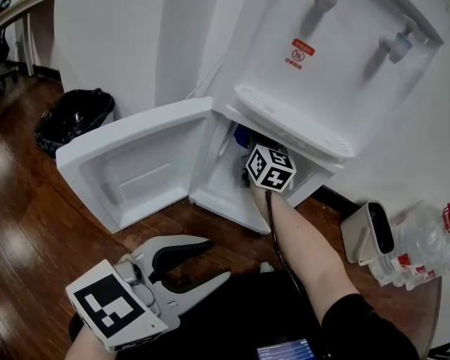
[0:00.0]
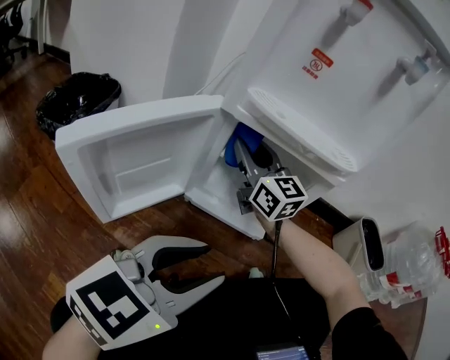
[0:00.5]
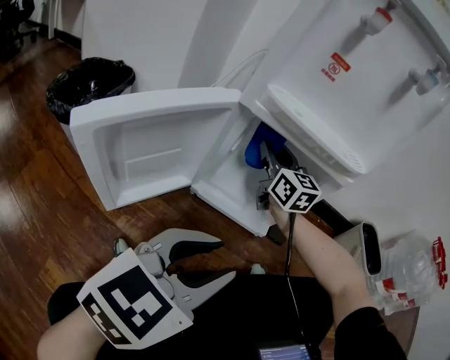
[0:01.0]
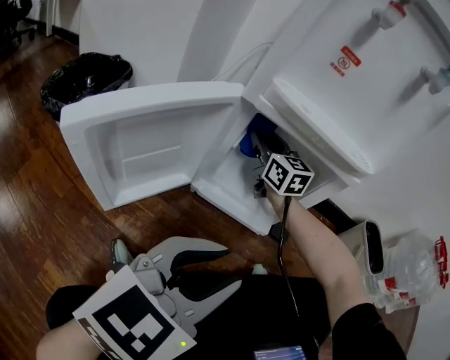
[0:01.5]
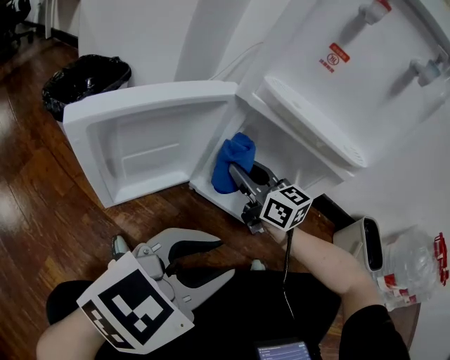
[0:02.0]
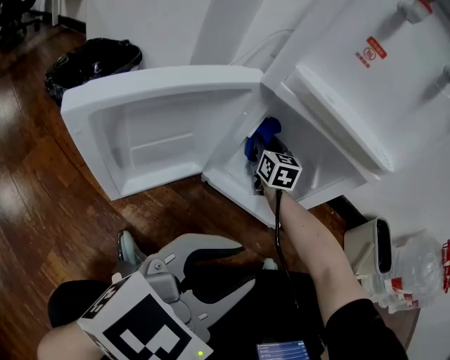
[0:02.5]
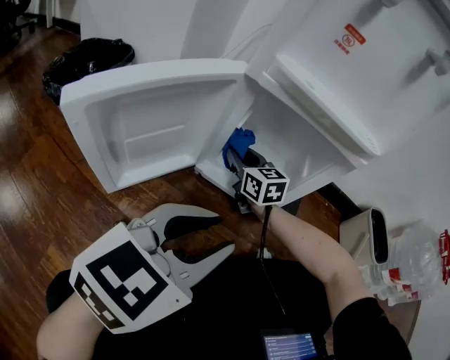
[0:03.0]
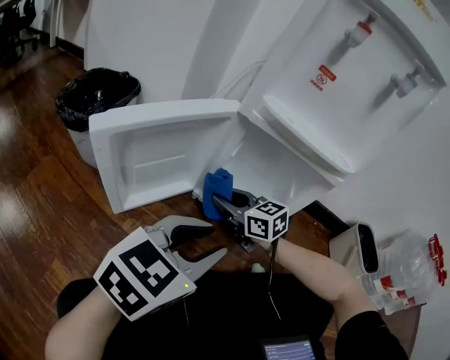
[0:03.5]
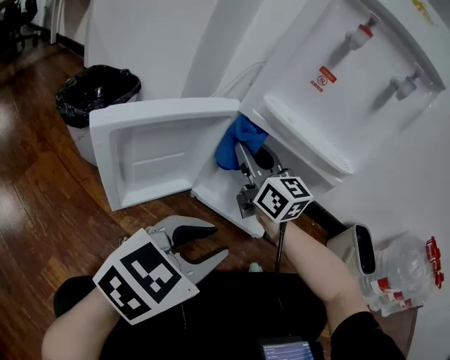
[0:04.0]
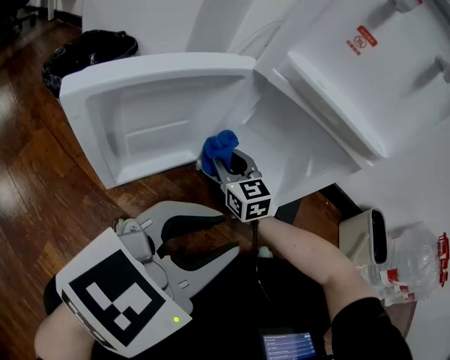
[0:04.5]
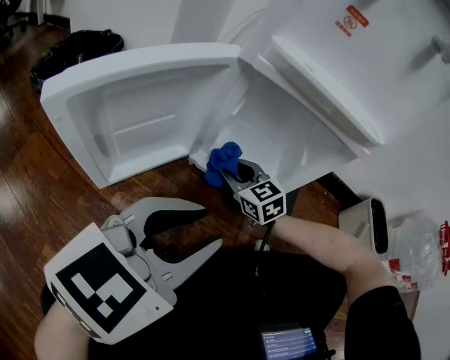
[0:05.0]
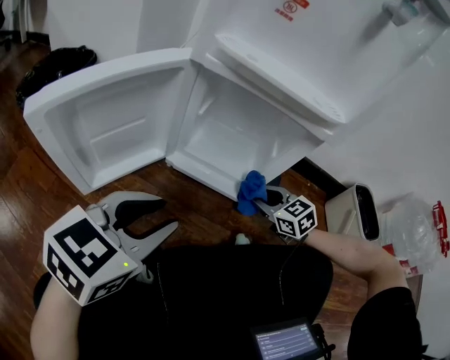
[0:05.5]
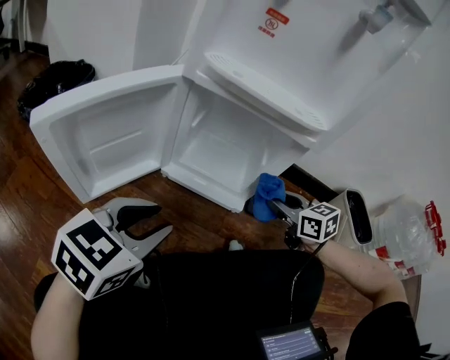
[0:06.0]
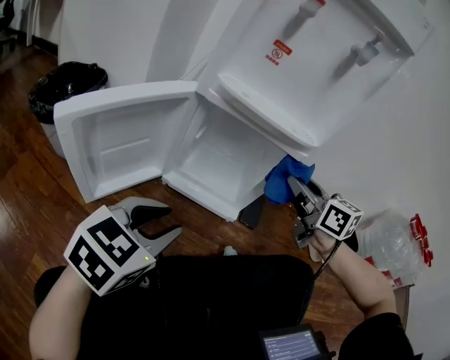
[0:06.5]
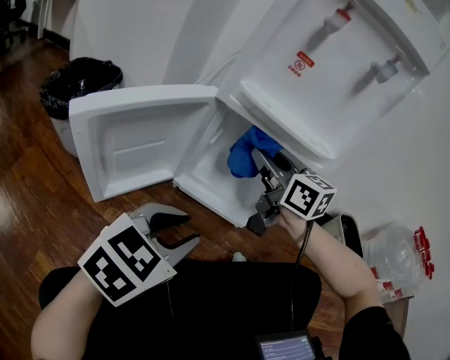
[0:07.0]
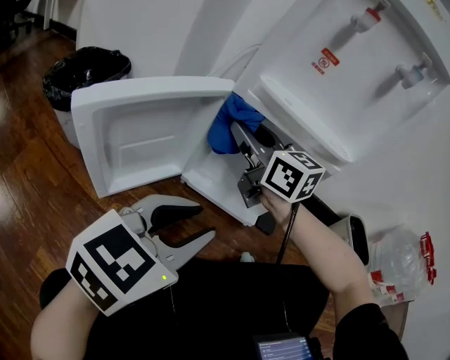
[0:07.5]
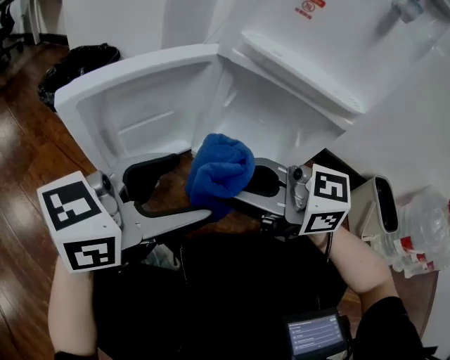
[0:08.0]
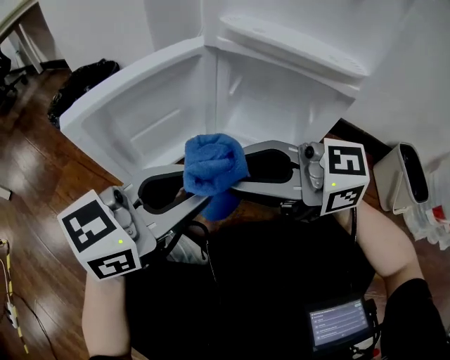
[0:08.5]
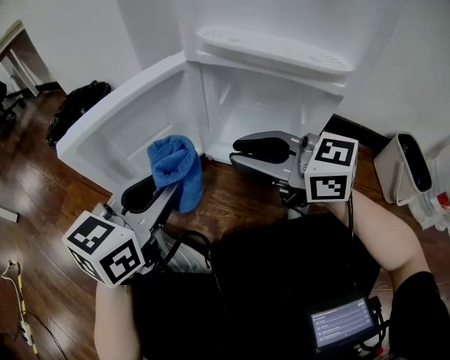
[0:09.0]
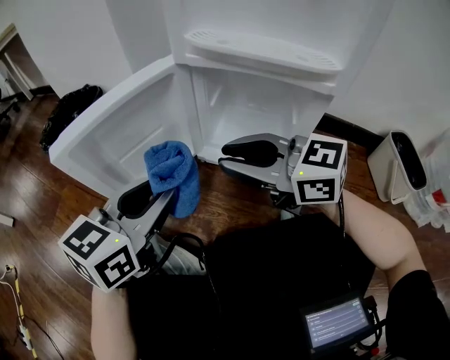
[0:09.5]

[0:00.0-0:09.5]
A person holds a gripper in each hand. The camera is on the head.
0:00.0 to 0:02.0: The right gripper moves forward and backward over about 15 cm, changing direction 2 times, and swivels about 40 degrees.
0:02.0 to 0:04.0: The right gripper moves forward and backward over about 20 cm, changing direction 2 times.
0:04.0 to 0:05.5: The right gripper heads downward and to the right, covering approximately 35 cm, and points its fingers about 40 degrees further downward.
0:05.5 to 0:07.5: The left gripper is displaced upward by roughly 5 cm, while the right gripper is displaced upward and to the left by about 35 cm, and angles its fingers upward, by about 30 degrees.
0:07.5 to 0:09.5: The left gripper shifts by some 5 cm, and opens, then closes once more. Meanwhile the right gripper ends up approximately 15 cm from where it was, and swivels roughly 20 degrees.

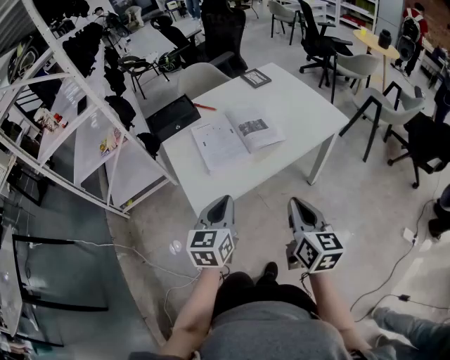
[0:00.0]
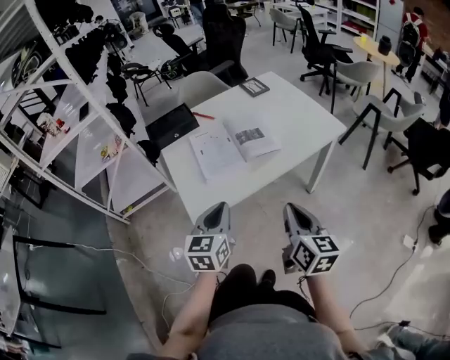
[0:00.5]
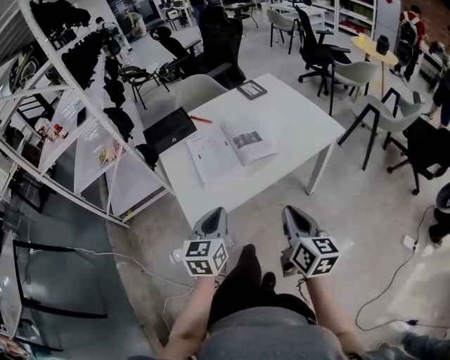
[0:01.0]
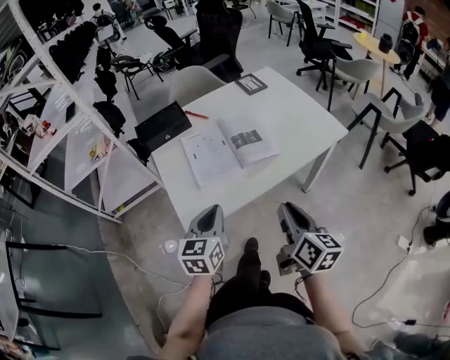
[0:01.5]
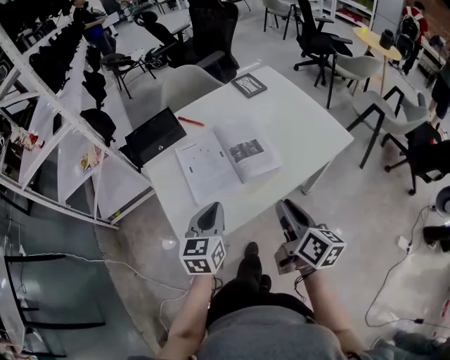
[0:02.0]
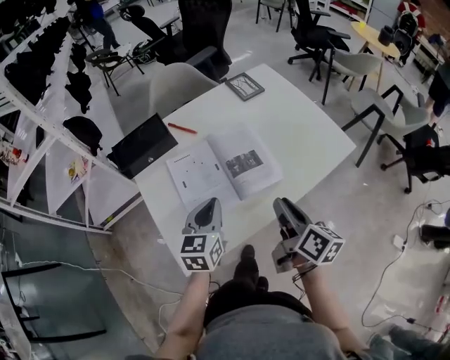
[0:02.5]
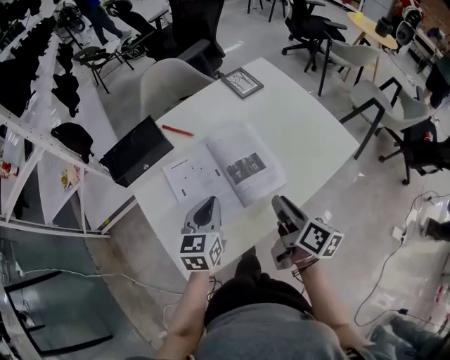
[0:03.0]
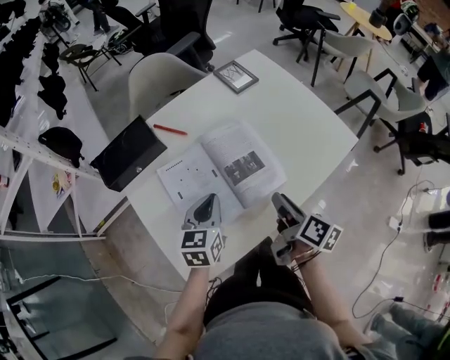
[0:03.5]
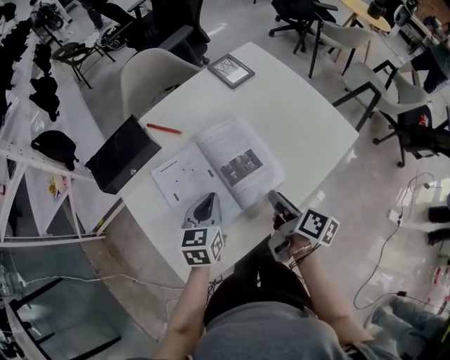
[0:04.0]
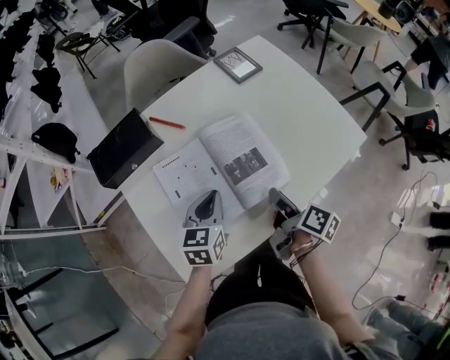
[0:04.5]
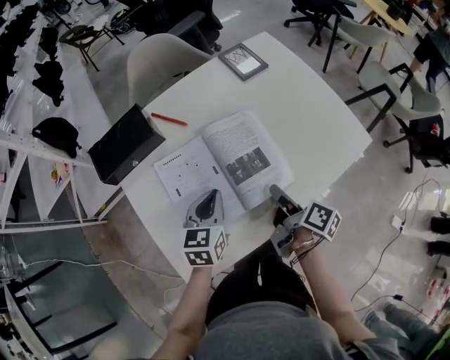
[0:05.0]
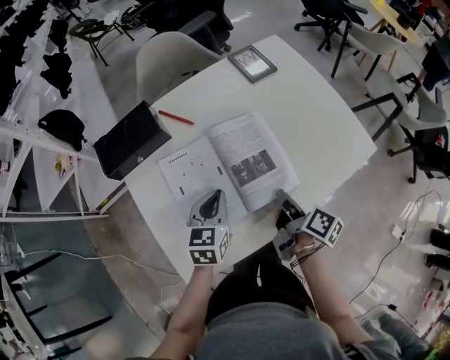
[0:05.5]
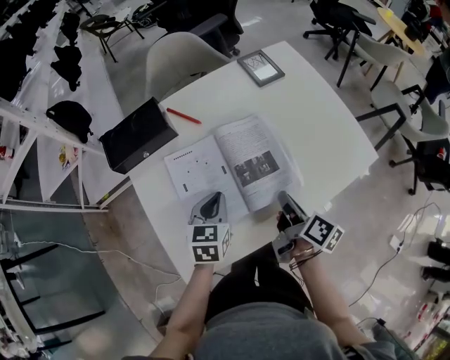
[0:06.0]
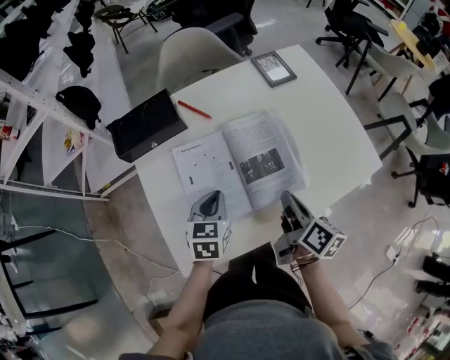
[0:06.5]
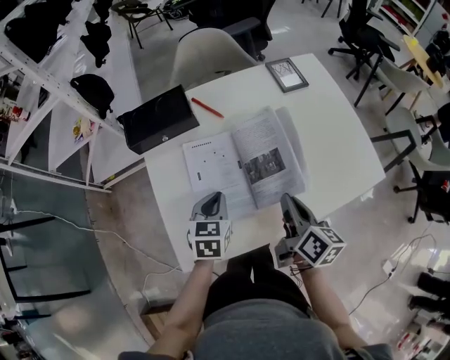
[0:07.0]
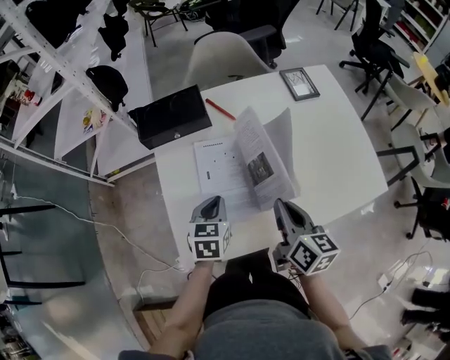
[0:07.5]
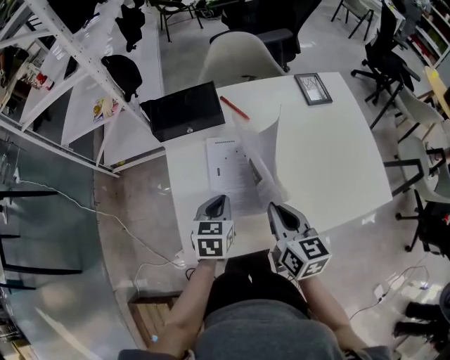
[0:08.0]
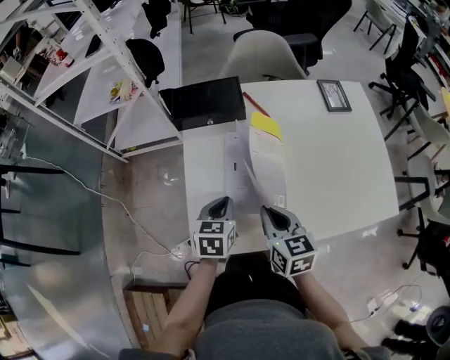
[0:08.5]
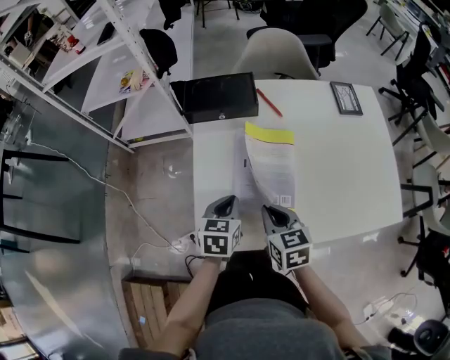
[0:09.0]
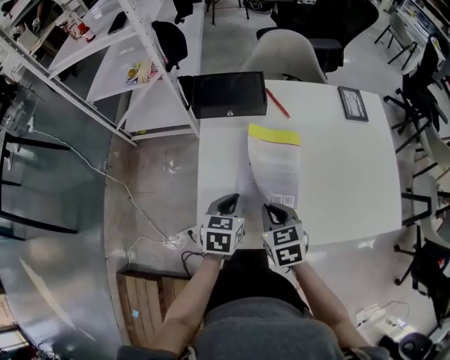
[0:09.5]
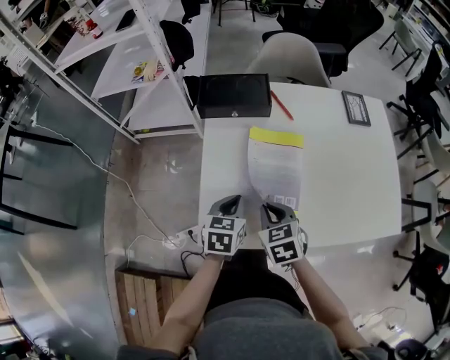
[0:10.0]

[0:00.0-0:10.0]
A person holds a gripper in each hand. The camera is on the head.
0:00.0 to 0:02.0: The grippers both shift forward by roughly 15 cm. The right gripper swivels some 20 degrees, and opens.
0:02.0 to 0:04.0: Both grippers travel together forward and downward, roughly 15 cm. The right gripper swivels approximately 30 degrees.
0:04.0 to 0:06.0: The right gripper closes up.
0:06.0 to 0:08.0: The right gripper is displaced to the left and upward by about 15 cm, and rolls counterclockwise, seen from behind, by about 50 degrees; the left gripper is displaced to the left by some 5 cm.
0:08.0 to 0:10.0: The right gripper moves to the left and downward, approximately 10 cm, and rotates approximately 40 degrees. Meanwhile the left gripper moves about 5 cm.

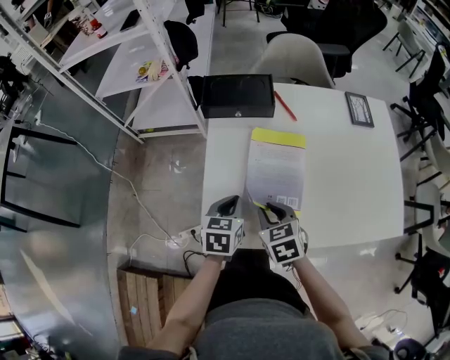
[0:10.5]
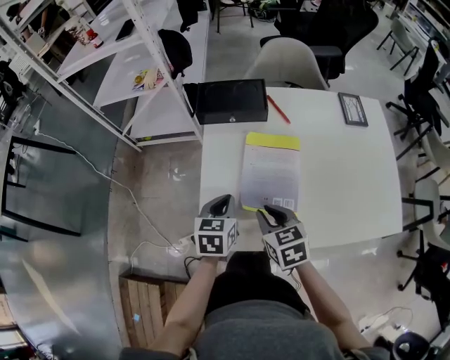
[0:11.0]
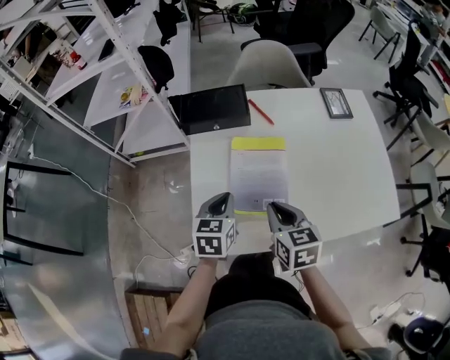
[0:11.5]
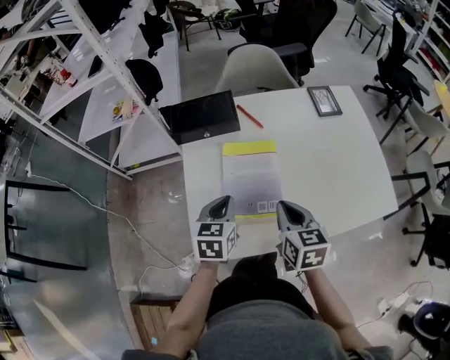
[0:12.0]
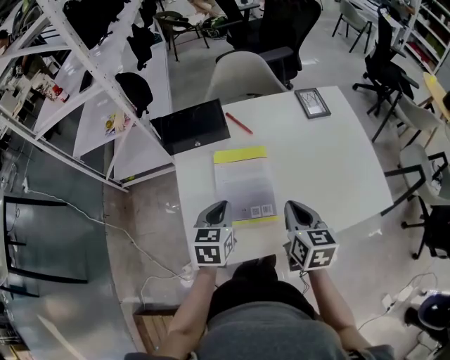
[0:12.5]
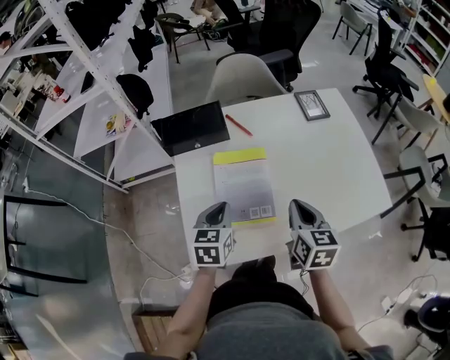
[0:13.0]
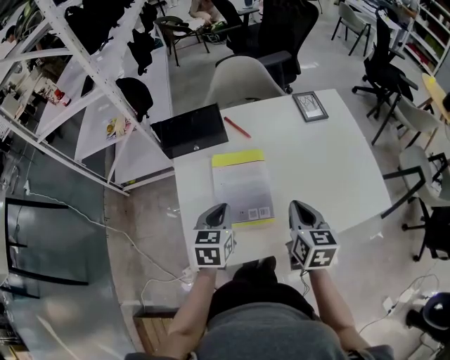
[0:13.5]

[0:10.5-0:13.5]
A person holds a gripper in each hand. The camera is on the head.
0:10.5 to 0:12.0: The left gripper moves upward, some 5 cm; the right gripper heads to the right and upward, covering about 15 cm, and changes its angle by roughly 30 degrees.
0:12.0 to 0:13.5: The right gripper shifts about 5 cm to the right.

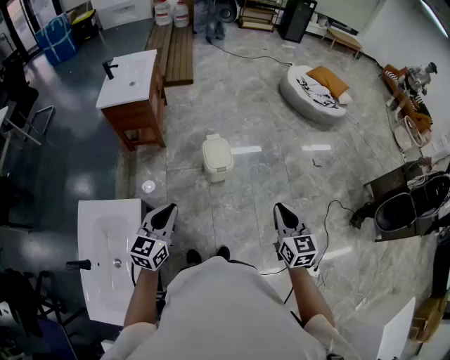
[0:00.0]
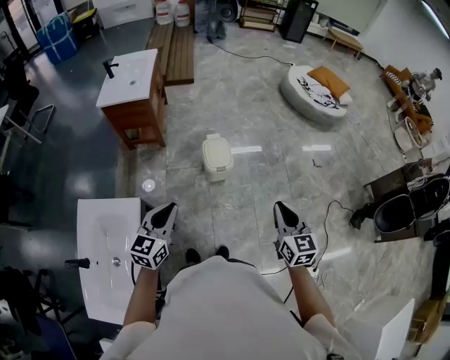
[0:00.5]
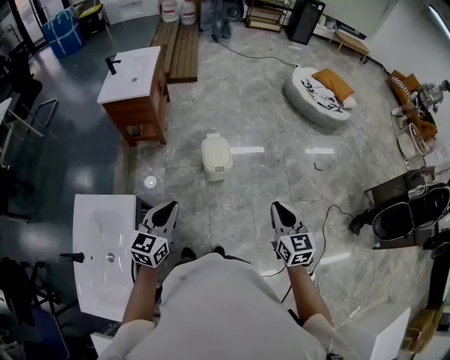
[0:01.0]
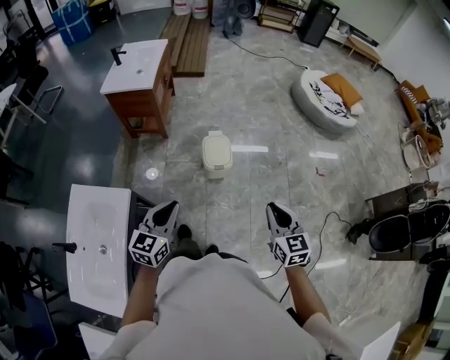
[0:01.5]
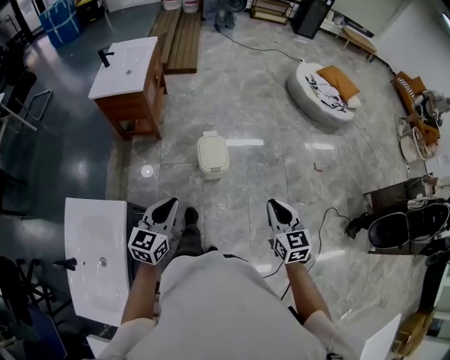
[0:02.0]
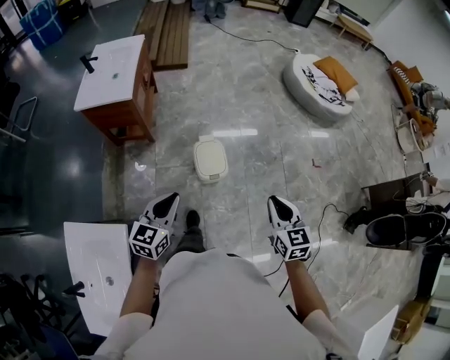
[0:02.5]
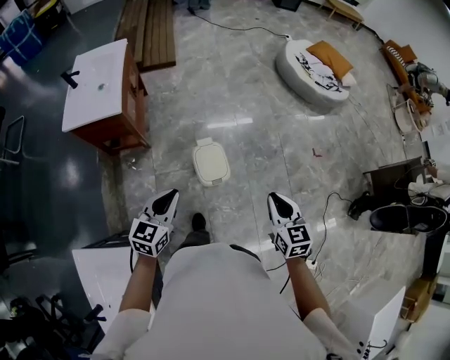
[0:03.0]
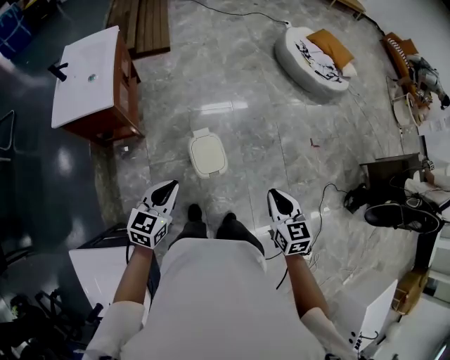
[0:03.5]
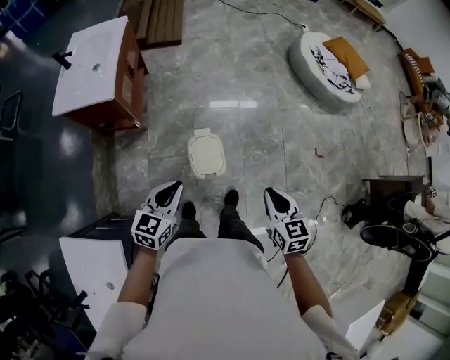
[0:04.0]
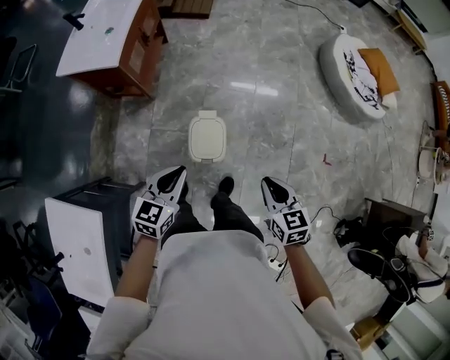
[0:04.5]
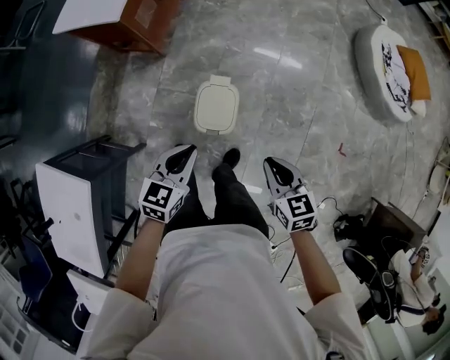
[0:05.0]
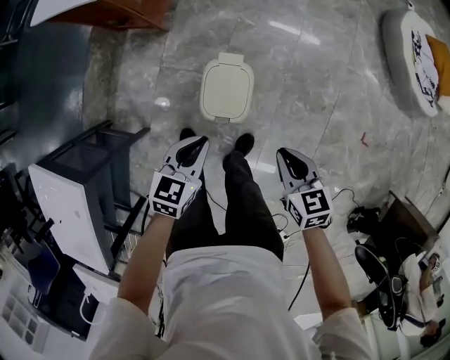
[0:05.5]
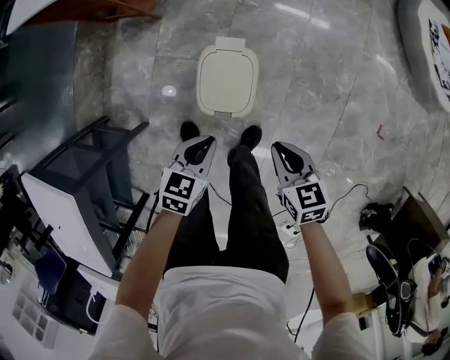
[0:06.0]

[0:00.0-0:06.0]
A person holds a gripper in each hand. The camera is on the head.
0:00.0 to 0:02.0: Both grippers travel together forward, roughly 10 cm.
0:02.0 to 0:04.0: Both grippers move forward, some 25 cm.
0:04.0 to 0:06.0: The grippers both shift downward by some 30 cm. The right gripper changes its angle by approximately 30 degrees. The left gripper turns by approximately 30 degrees.
